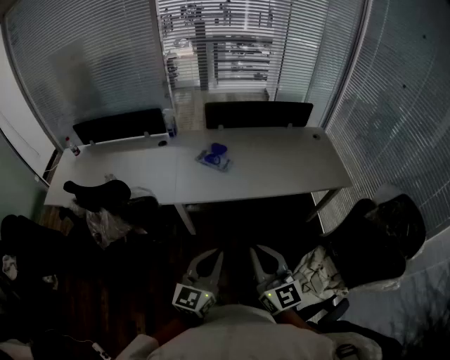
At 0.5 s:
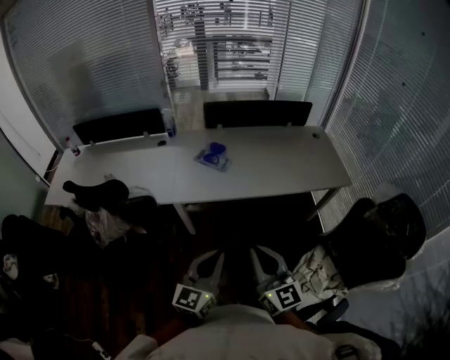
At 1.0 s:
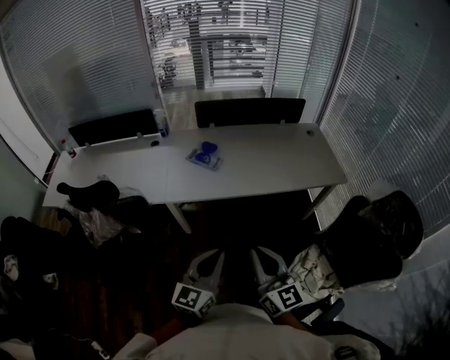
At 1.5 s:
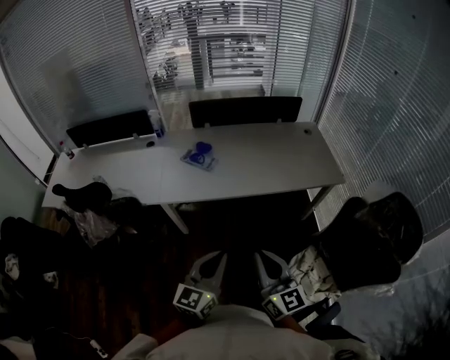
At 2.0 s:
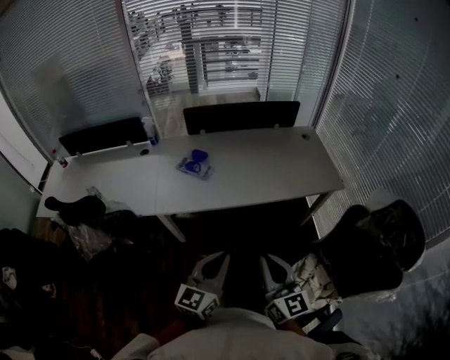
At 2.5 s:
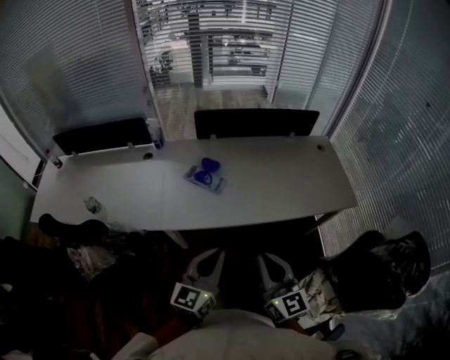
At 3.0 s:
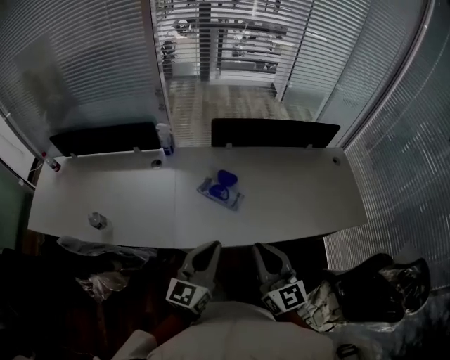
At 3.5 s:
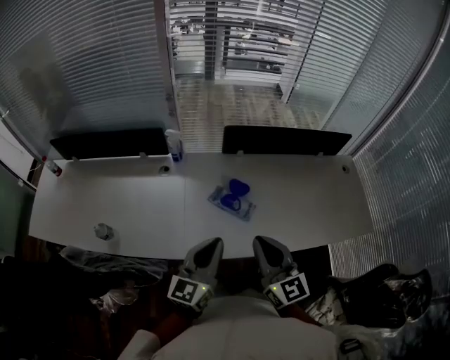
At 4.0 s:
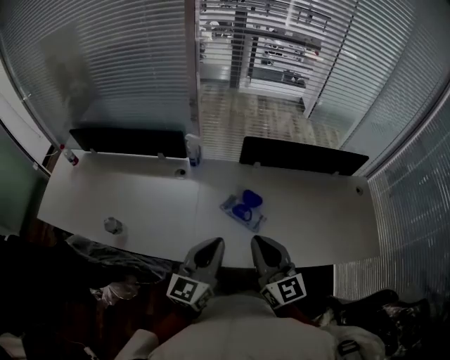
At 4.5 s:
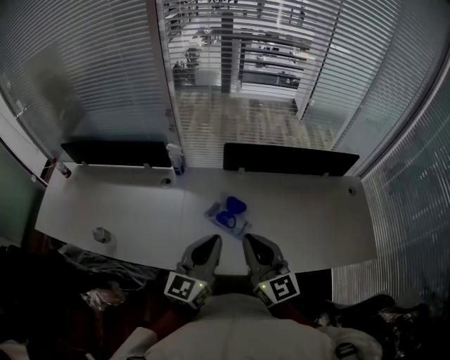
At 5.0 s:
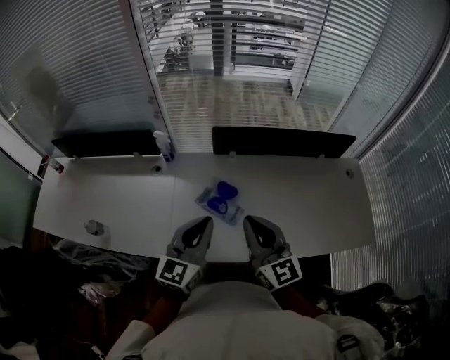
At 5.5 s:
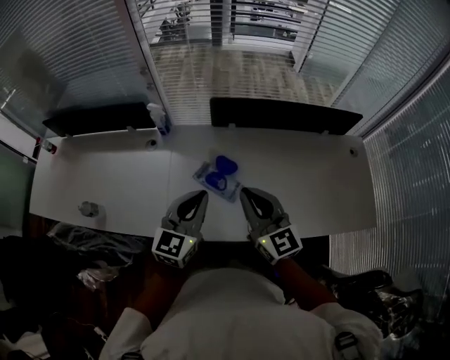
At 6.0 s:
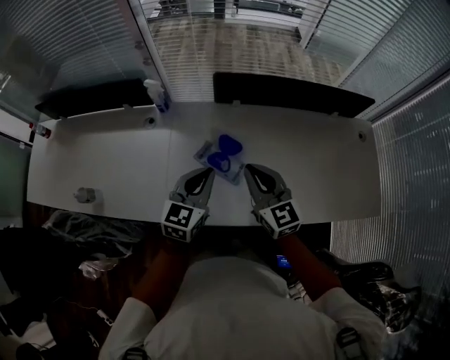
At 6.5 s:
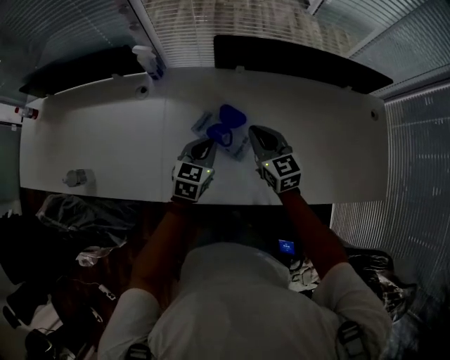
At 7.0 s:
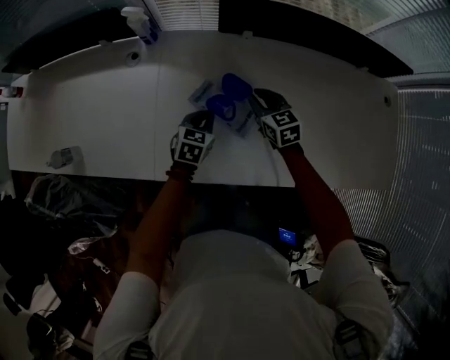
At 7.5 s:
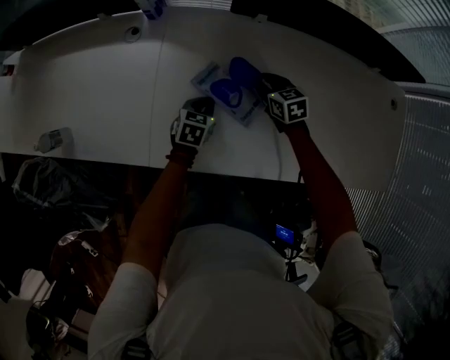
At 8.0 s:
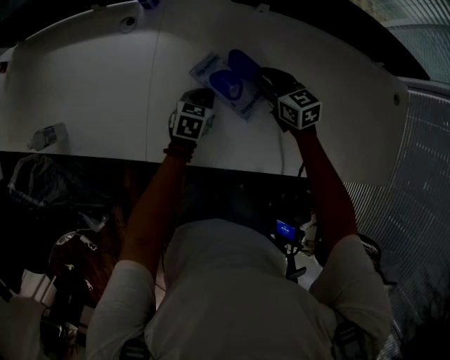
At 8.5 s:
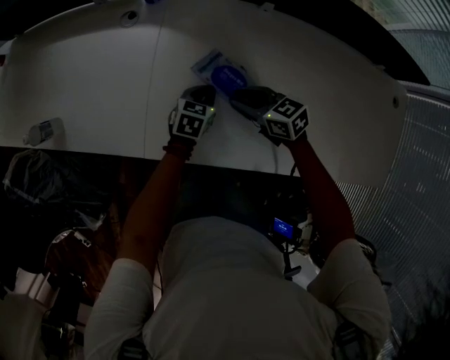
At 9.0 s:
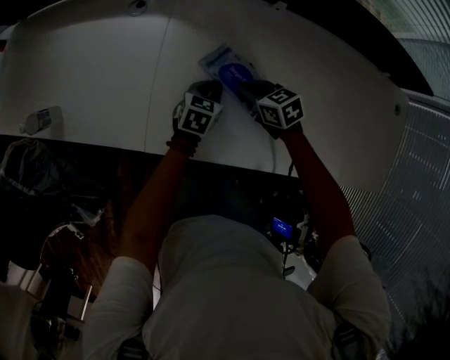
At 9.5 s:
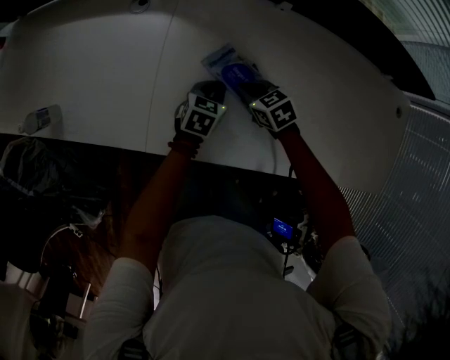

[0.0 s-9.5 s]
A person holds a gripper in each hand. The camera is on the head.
0.0 to 2.0 s: The left gripper heads to the right and forward, covering approximately 15 cm. Meanwhile the right gripper travels to the right by some 15 cm.
2.0 to 4.0 s: The pair of grippers is taken forward and to the left, roughly 50 cm.
4.0 to 5.5 s: Both grippers travel together to the right and forward, about 10 cm.
5.5 to 7.5 s: The right gripper heads downward and forward, covering about 40 cm, tilts its fingers some 40 degrees downward, and opens. The left gripper moves downward, some 40 cm, and angles its fingers downward, by approximately 40 degrees.
7.5 to 9.5 s: The right gripper shifts approximately 10 cm to the left and backward, turns by some 20 degrees, and closes its fingers.

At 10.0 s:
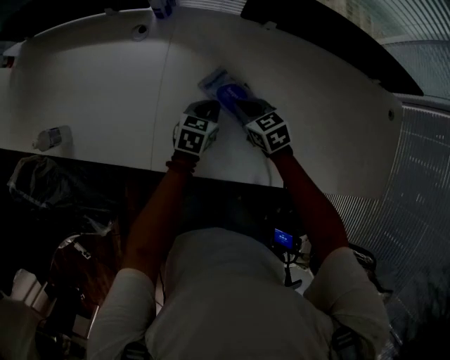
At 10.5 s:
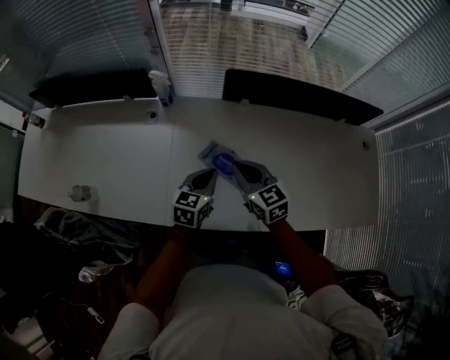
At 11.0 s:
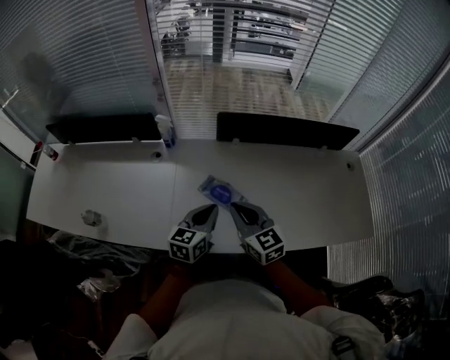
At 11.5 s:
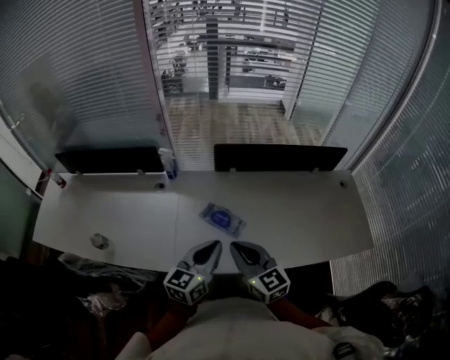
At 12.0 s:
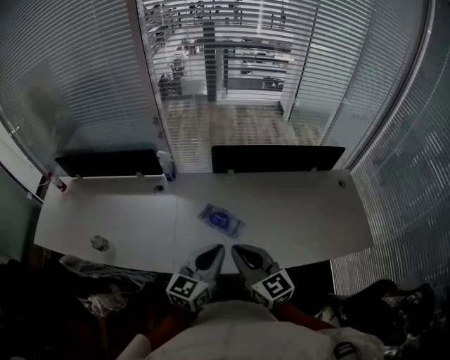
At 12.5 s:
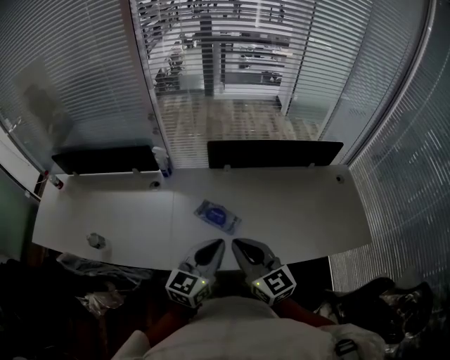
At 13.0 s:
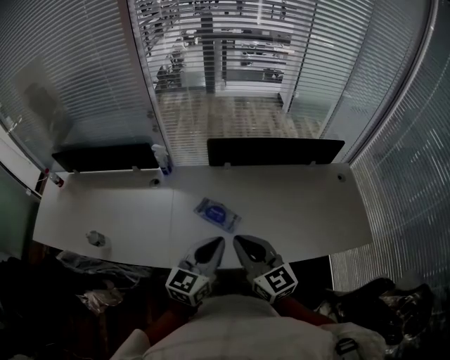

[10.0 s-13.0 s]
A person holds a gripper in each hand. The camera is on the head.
10.0 to 11.5 s: Both grippers travel together upward and backward, roughly 40 cm. The right gripper points its fingers some 40 degrees further upward; the left gripper tilts its fingers some 30 degrees upward.
11.5 to 13.0 s: The right gripper shifts by roughly 5 cm.

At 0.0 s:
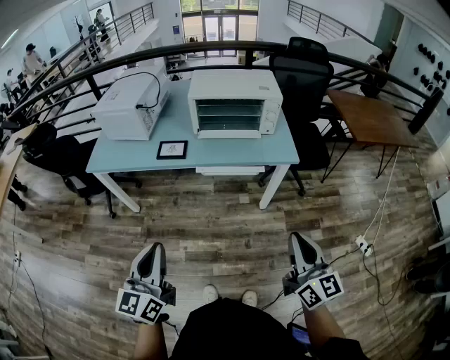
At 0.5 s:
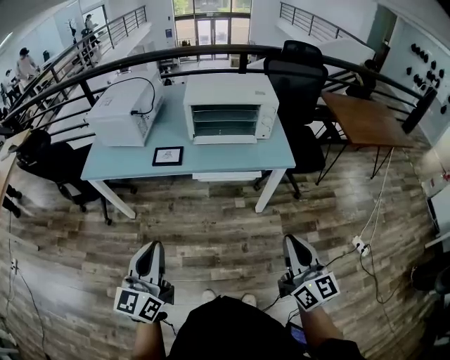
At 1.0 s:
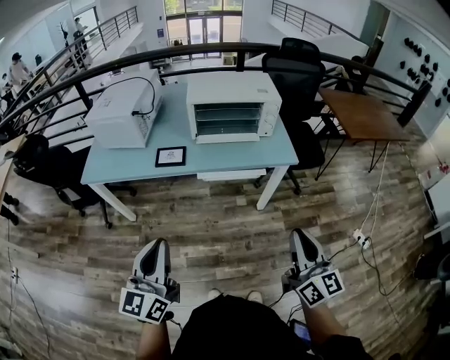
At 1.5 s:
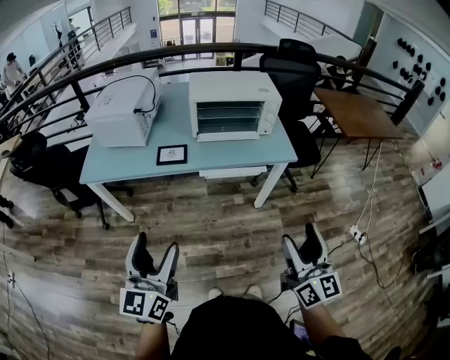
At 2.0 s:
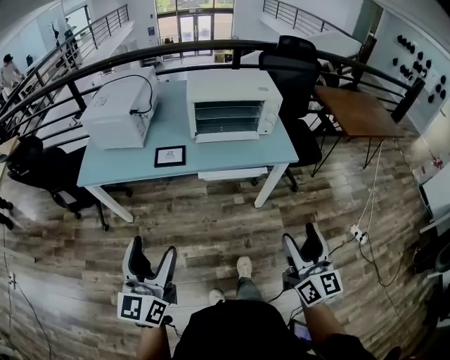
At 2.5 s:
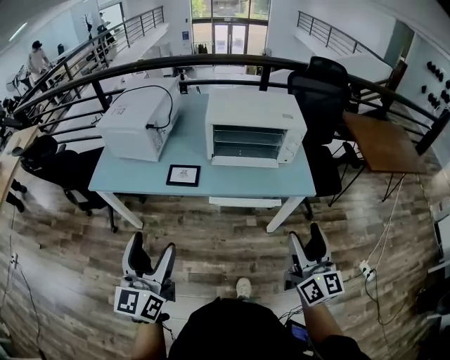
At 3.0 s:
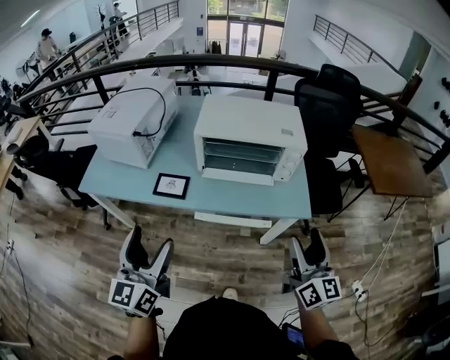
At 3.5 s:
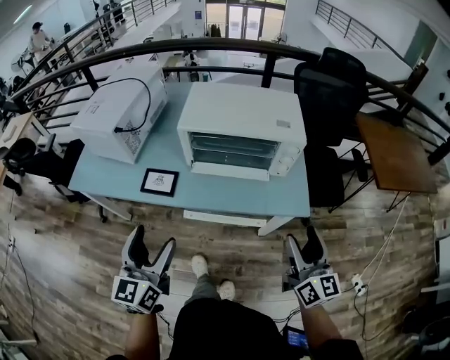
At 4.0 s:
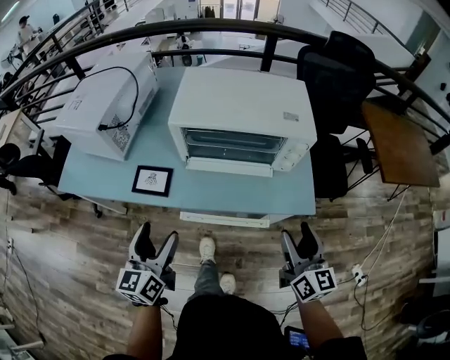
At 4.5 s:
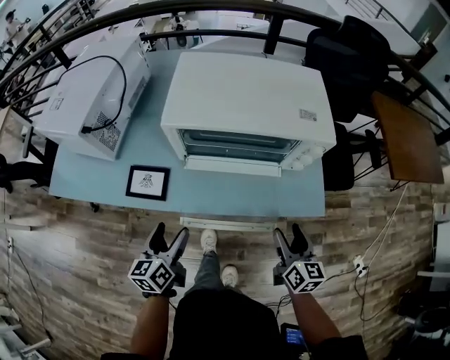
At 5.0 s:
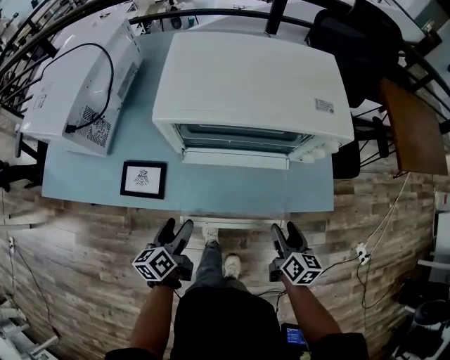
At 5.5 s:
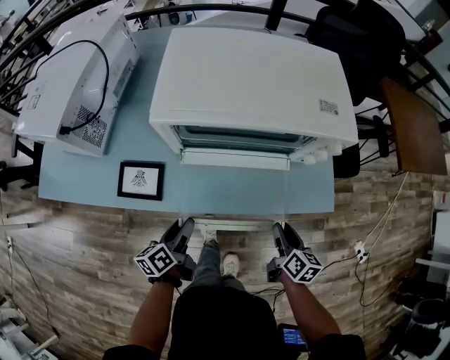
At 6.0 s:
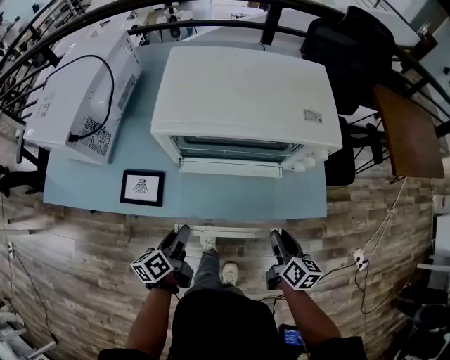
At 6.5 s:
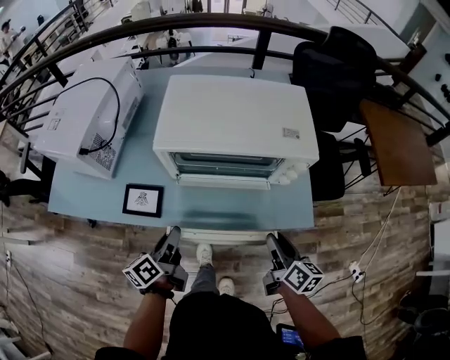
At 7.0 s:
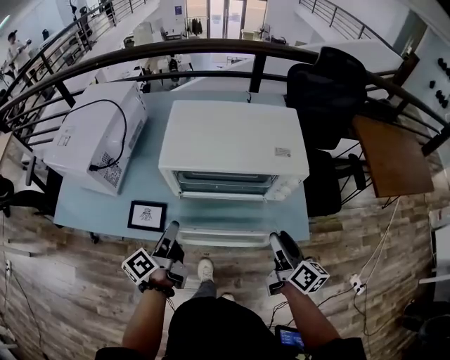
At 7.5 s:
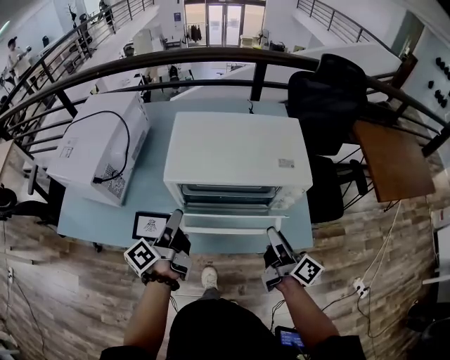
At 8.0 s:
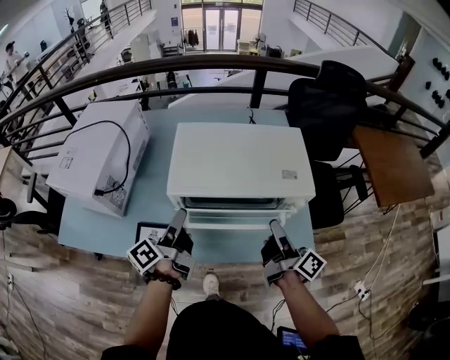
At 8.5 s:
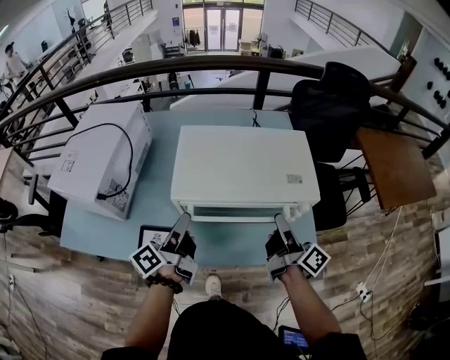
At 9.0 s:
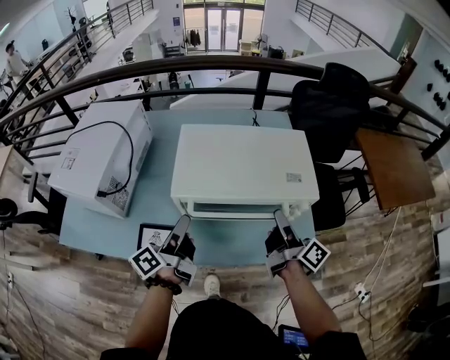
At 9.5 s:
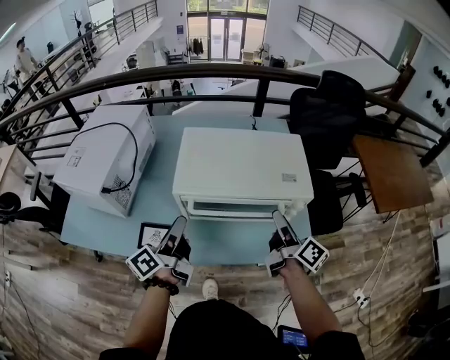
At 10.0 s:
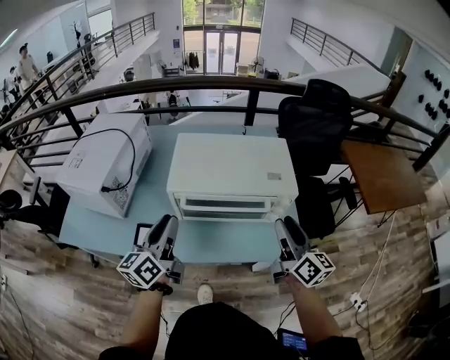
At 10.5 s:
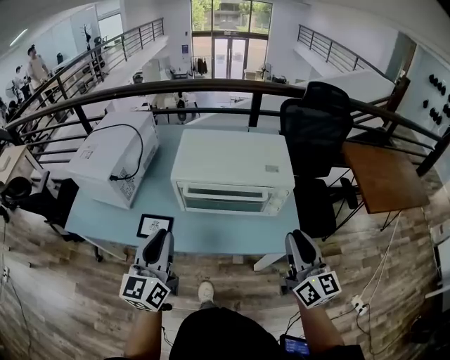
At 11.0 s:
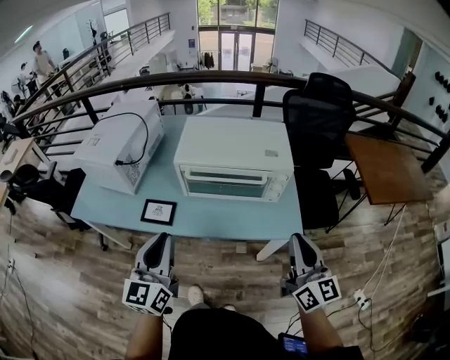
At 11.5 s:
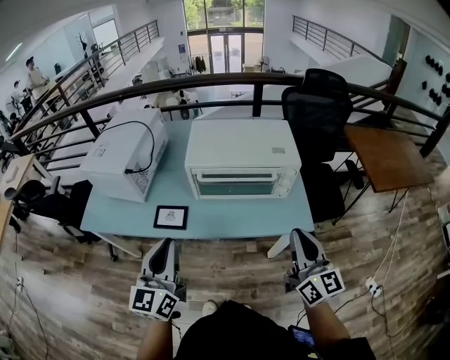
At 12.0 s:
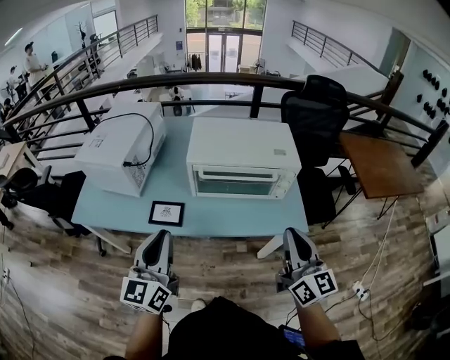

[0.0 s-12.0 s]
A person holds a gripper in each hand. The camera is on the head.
0.0 to 2.0 s: The left gripper travels to the left and forward by about 10 cm, and opens its fingers. The right gripper goes some 5 cm to the left, and opens.
2.0 to 4.0 s: The right gripper heads forward, covering approximately 30 cm. The left gripper goes roughly 30 cm forward, downward and to the right.
4.0 to 6.0 s: Both grippers travel together downward, approximately 20 cm. The left gripper rotates approximately 40 degrees, and closes, while the right gripper turns by about 30 degrees, and closes its fingers.
6.0 to 8.0 s: The two grippers go roughly 25 cm upward and forward. The right gripper tips its fingers upward by about 40 degrees, while the left gripper changes its angle by roughly 30 degrees.
8.0 to 10.0 s: The right gripper shifts about 10 cm upward, and swivels approximately 40 degrees, while the left gripper heads backward and upward, covering about 10 cm, and rotates around the line of its fingers by about 40 degrees, clockwise from behind.
10.0 to 12.0 s: Both grippers travel together backward, roughly 15 cm. The left gripper turns by approximately 30 degrees. The right gripper changes its angle by about 20 degrees, and closes.

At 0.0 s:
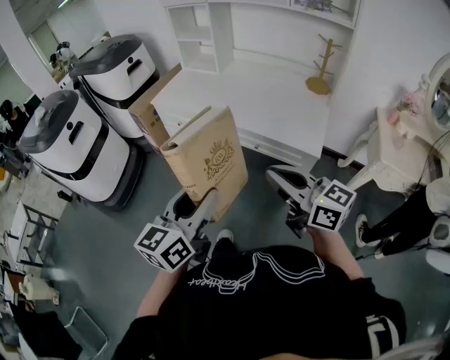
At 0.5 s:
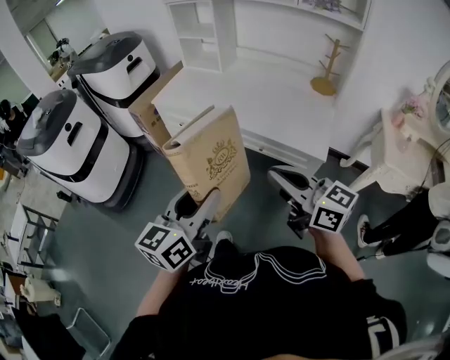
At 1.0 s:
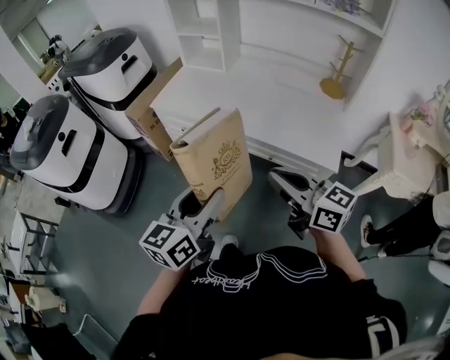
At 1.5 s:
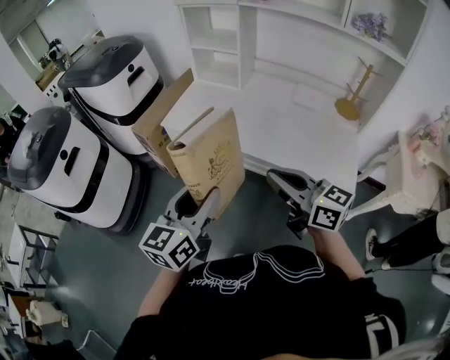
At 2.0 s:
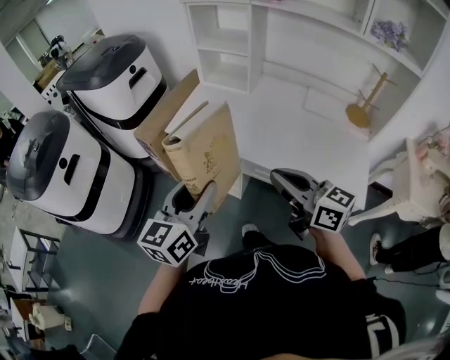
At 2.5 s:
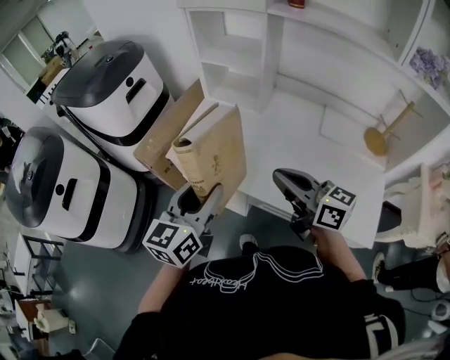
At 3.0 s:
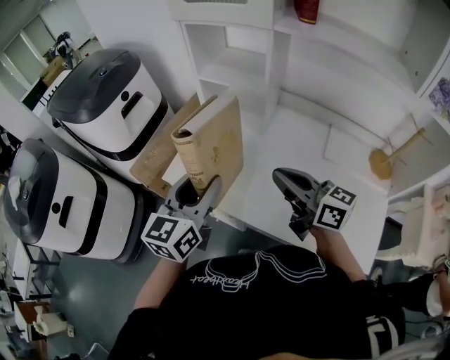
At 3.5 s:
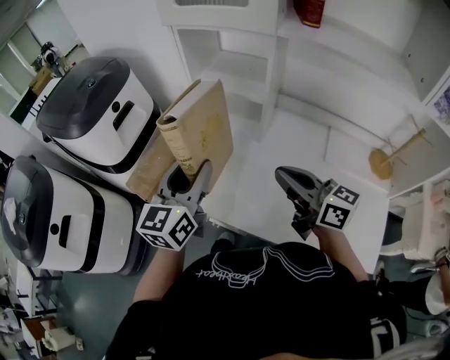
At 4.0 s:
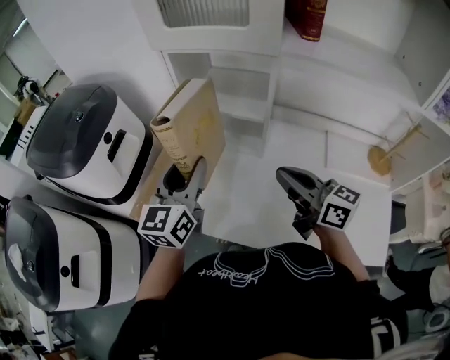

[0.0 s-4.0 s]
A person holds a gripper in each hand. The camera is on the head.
0.0 to 2.0 s: The two grippers go approximately 30 cm forward.
2.0 to 4.0 s: The grippers both shift forward by approximately 40 cm.
